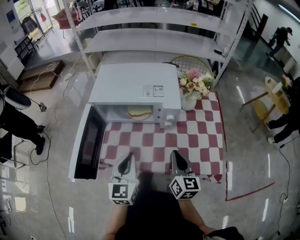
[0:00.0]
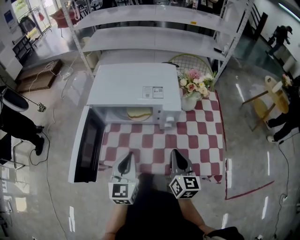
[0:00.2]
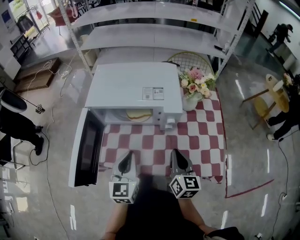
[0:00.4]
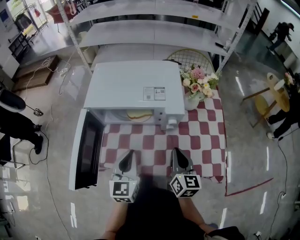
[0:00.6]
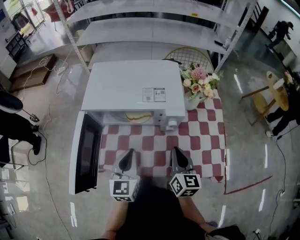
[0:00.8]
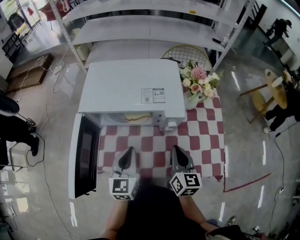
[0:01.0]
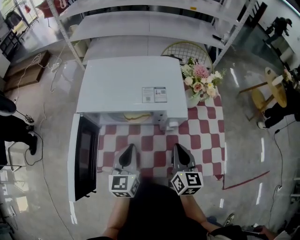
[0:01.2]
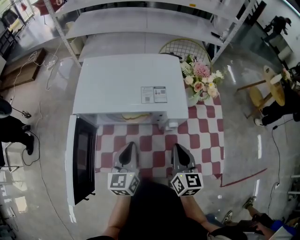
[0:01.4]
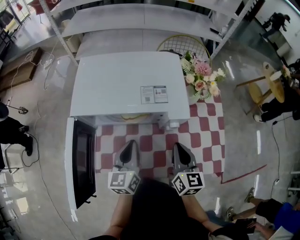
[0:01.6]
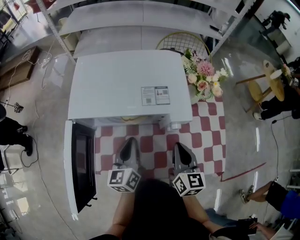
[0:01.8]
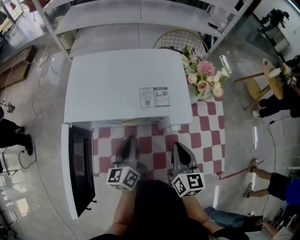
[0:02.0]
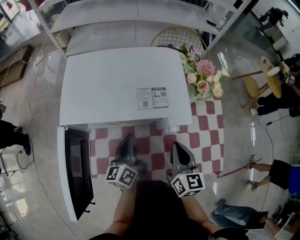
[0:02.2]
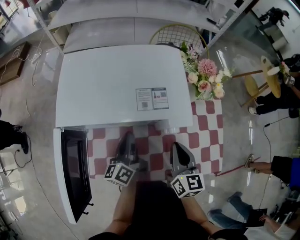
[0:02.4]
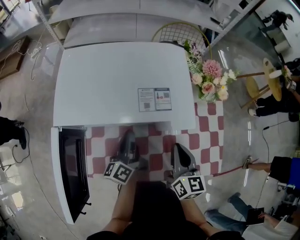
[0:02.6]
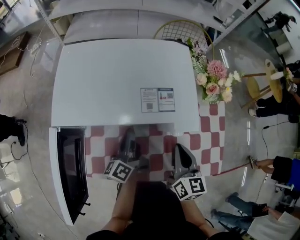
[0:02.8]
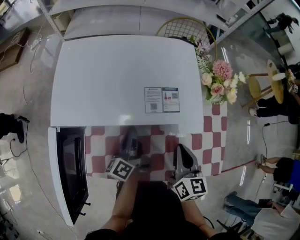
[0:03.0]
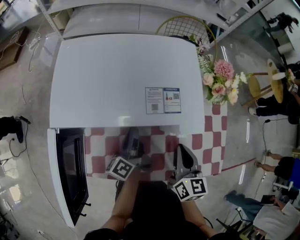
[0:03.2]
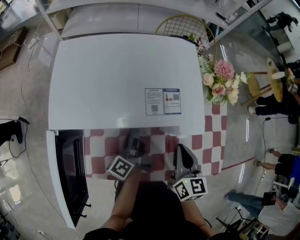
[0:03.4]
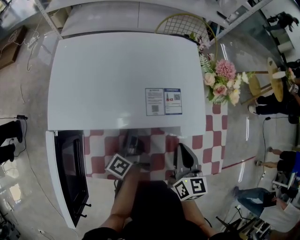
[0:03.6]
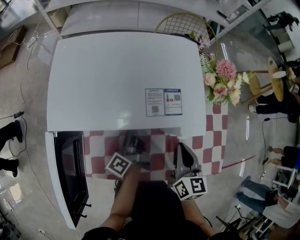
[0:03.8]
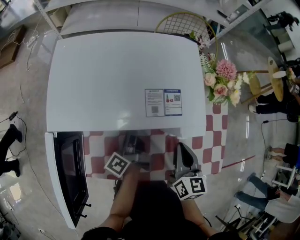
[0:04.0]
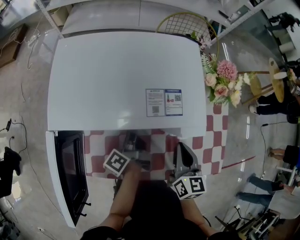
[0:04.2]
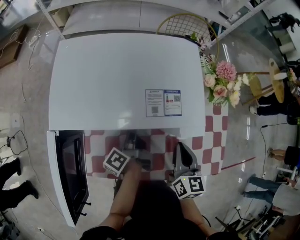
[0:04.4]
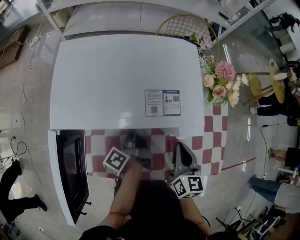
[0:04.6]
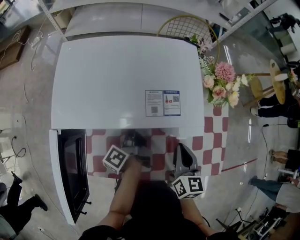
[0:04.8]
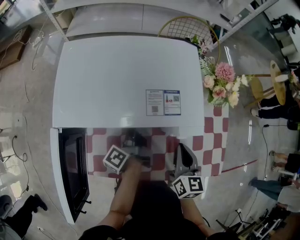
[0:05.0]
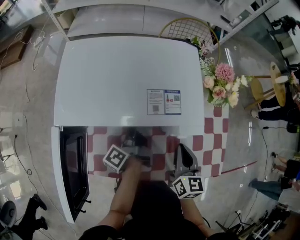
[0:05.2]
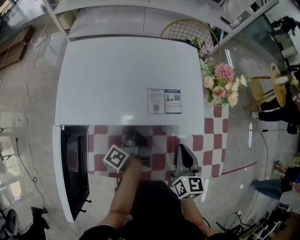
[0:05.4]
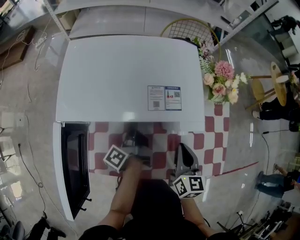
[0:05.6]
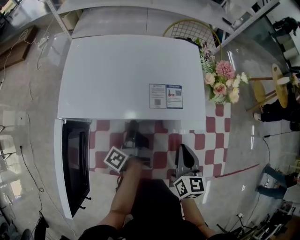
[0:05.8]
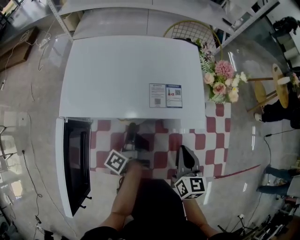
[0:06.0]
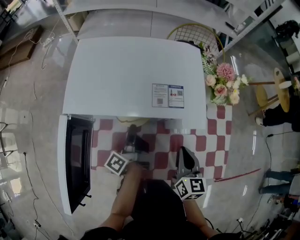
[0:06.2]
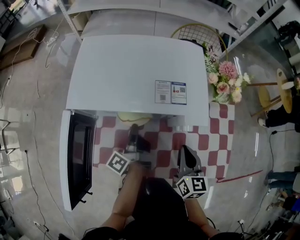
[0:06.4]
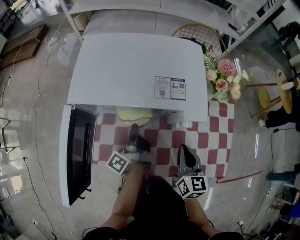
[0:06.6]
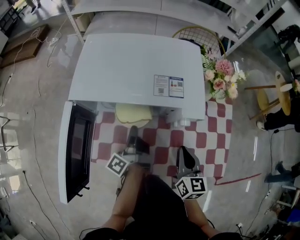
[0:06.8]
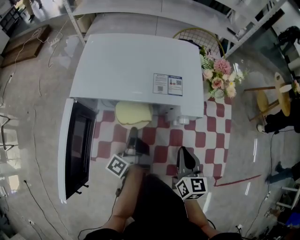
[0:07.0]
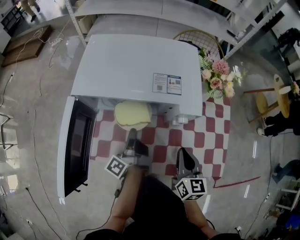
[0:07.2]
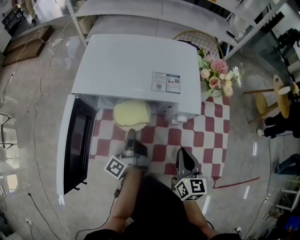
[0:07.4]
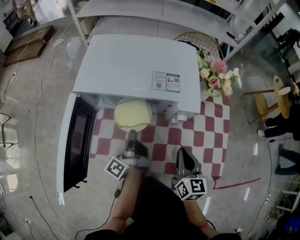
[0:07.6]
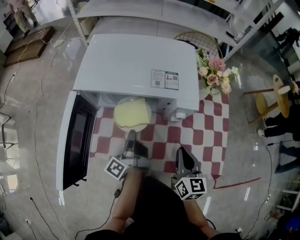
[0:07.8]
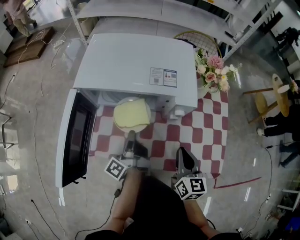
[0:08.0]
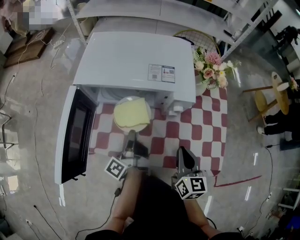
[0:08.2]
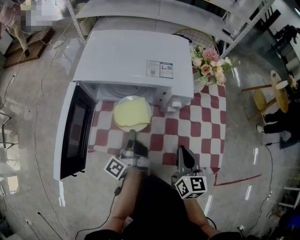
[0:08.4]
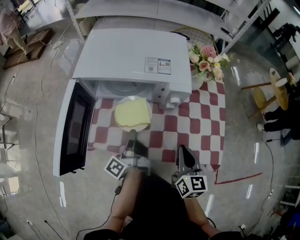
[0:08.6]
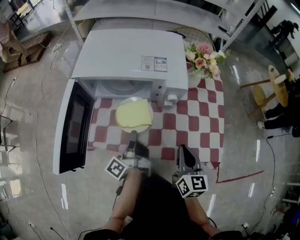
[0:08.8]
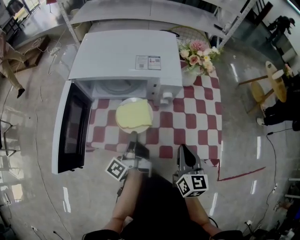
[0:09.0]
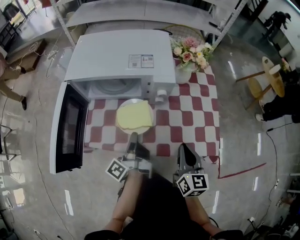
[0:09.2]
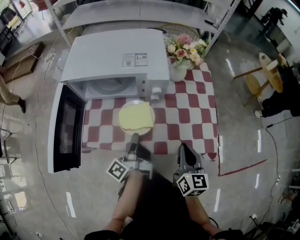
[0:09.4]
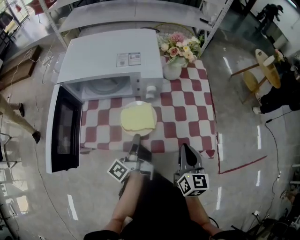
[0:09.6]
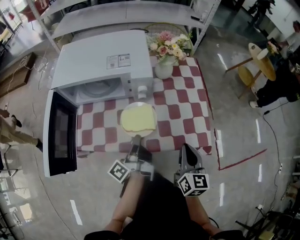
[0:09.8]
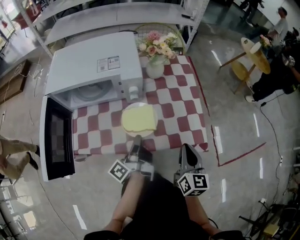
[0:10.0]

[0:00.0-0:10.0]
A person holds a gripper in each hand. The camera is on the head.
0:00.0 to 0:01.4: The right gripper moves forward, roughly 10 cm, while the left gripper is displaced forward and downward by roughly 15 cm.
0:01.4 to 0:02.8: The left gripper shifts about 10 cm forward and downward, and rolls counterclockwise, seen from behind, by about 50 degrees.
0:02.8 to 0:04.2: The left gripper swivels about 30 degrees, and opens.
0:04.2 to 0:05.8: The left gripper closes.
0:05.8 to 0:07.2: The left gripper travels backward by approximately 10 cm. The right gripper heads backward, covering some 5 cm.
0:07.2 to 0:08.6: The grippers both shift backward by approximately 5 cm.
0:08.6 to 0:10.0: Both grippers travel together to the right and backward, some 15 cm.

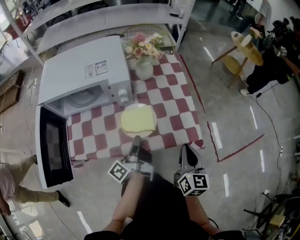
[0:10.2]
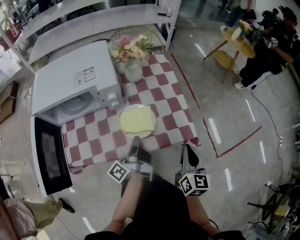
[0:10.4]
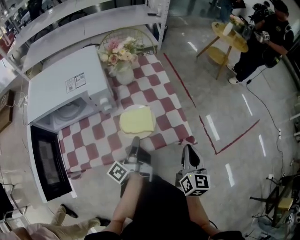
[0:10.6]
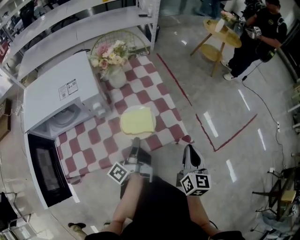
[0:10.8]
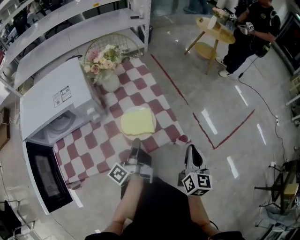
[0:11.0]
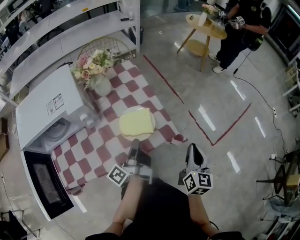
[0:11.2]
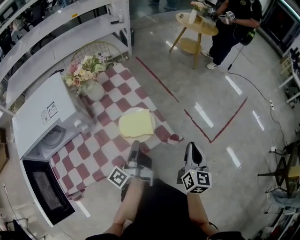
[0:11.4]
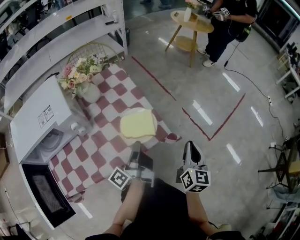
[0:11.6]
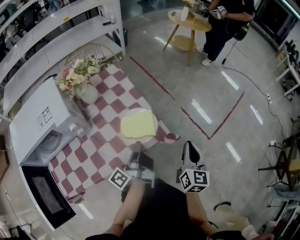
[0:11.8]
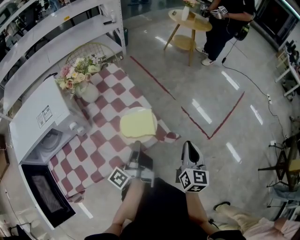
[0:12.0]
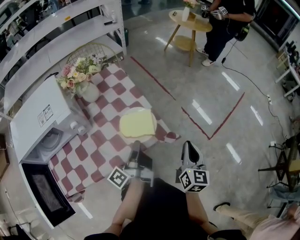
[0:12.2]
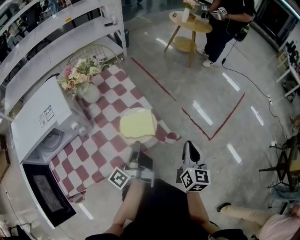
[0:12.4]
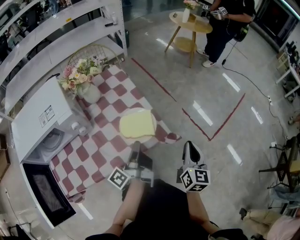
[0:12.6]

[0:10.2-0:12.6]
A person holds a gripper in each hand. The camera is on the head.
0:10.2 to 0:11.4: The two grippers go about 15 cm to the right. The left gripper turns by some 20 degrees; the right gripper changes its angle by approximately 30 degrees.
0:11.4 to 0:12.6: The grippers make only small movements.

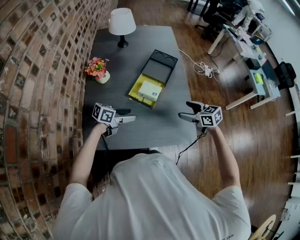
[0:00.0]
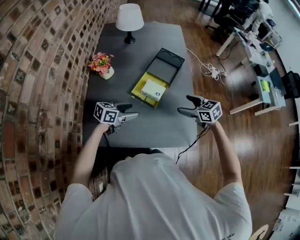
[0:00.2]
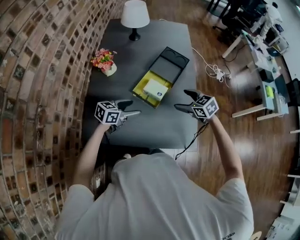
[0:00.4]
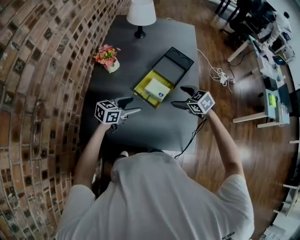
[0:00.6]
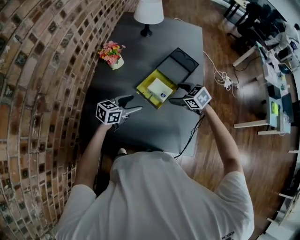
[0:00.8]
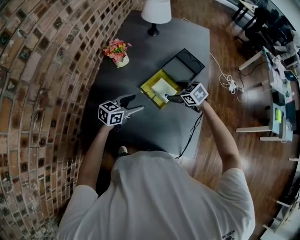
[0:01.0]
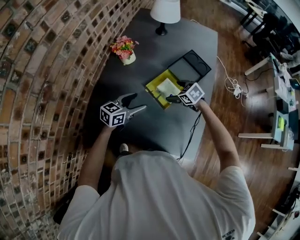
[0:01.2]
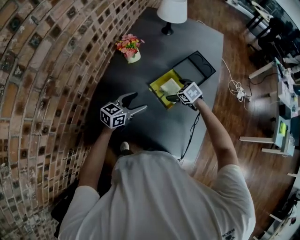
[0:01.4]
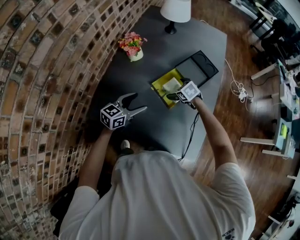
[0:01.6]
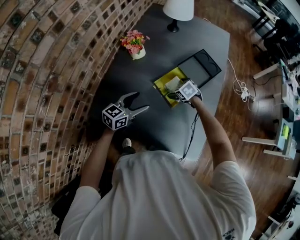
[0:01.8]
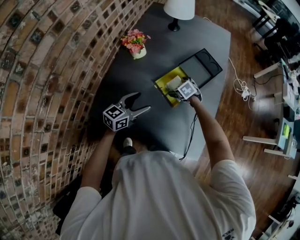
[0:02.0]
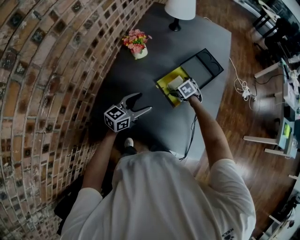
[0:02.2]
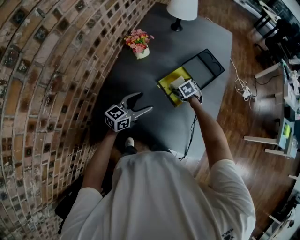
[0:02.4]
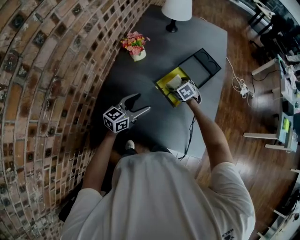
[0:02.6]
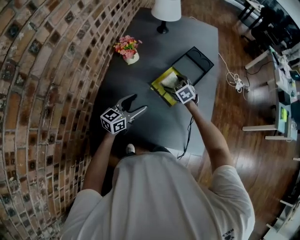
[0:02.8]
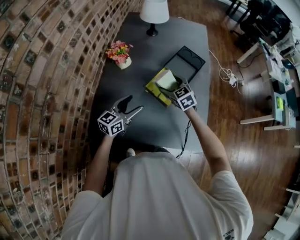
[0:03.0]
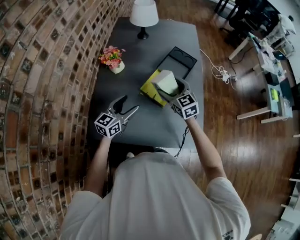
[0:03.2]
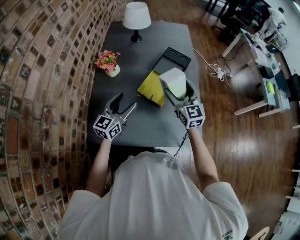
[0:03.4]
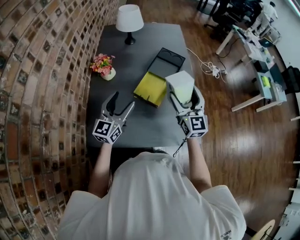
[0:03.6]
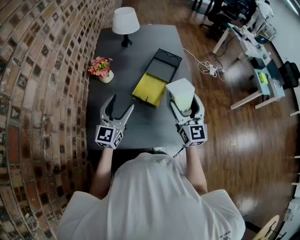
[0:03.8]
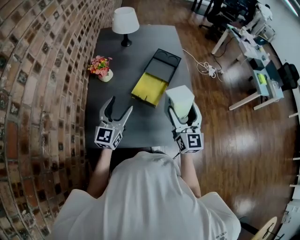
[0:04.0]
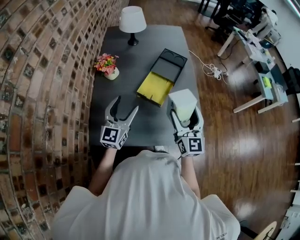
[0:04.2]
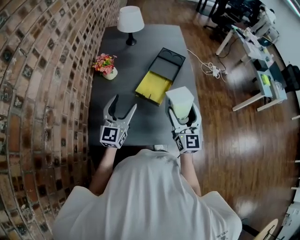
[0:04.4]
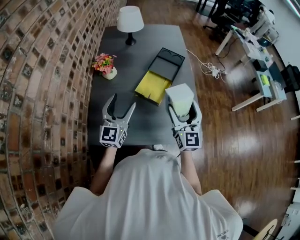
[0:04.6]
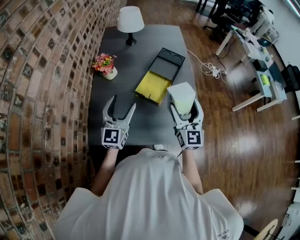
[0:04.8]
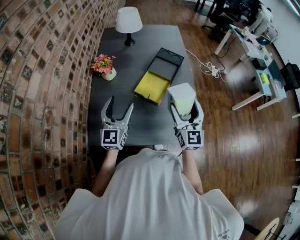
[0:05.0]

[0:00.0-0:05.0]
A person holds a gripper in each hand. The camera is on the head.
0:00.0 to 0:01.6: The left gripper changes its angle by about 40 degrees. The right gripper moves roughly 30 cm, and swivels about 40 degrees.
0:01.6 to 0:03.4: The right gripper is displaced upward by roughly 25 cm, and tips its fingers upward by some 50 degrees. The left gripper is displaced upward by approximately 10 cm.
0:03.4 to 0:05.0: The right gripper moves backward and to the right, about 15 cm, and changes its angle by about 20 degrees, while the left gripper shifts approximately 5 cm upward, and swivels some 20 degrees.

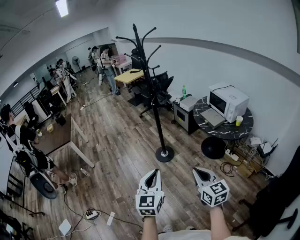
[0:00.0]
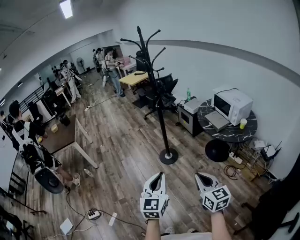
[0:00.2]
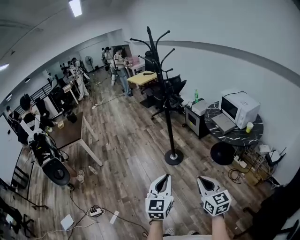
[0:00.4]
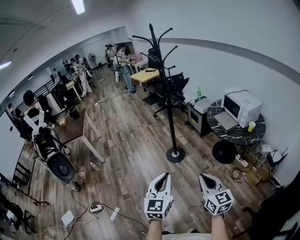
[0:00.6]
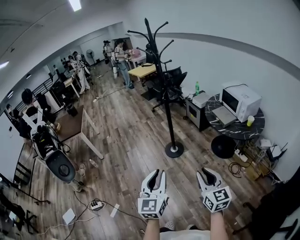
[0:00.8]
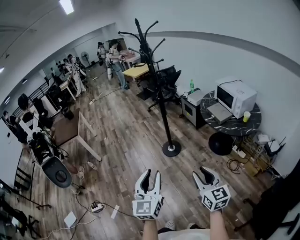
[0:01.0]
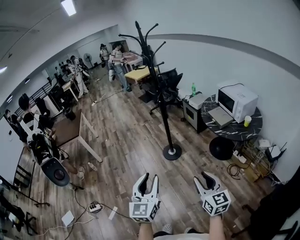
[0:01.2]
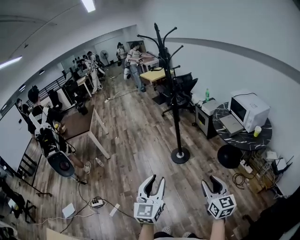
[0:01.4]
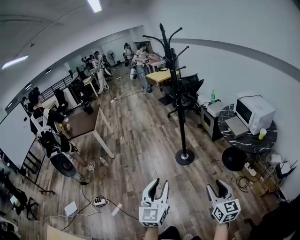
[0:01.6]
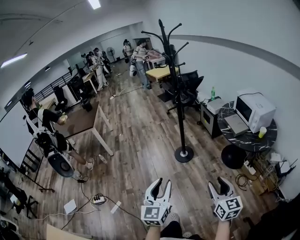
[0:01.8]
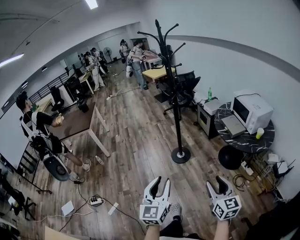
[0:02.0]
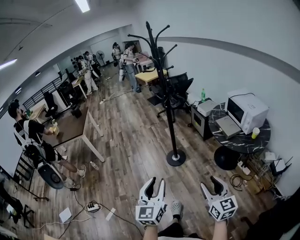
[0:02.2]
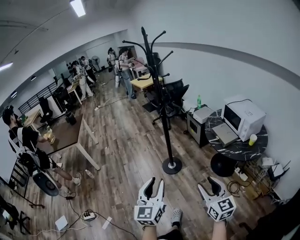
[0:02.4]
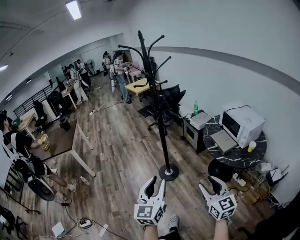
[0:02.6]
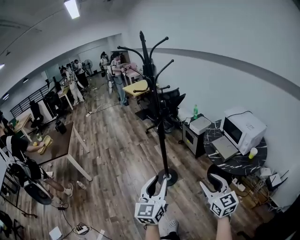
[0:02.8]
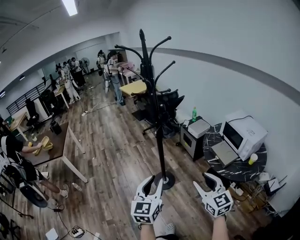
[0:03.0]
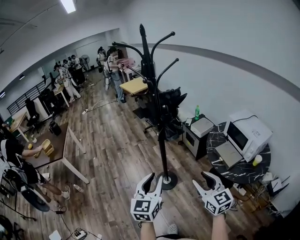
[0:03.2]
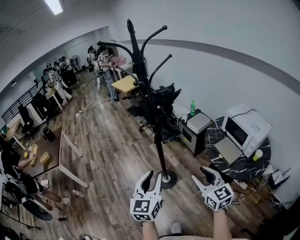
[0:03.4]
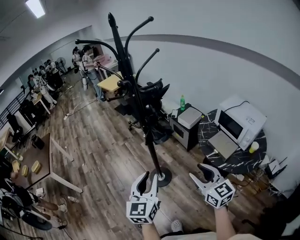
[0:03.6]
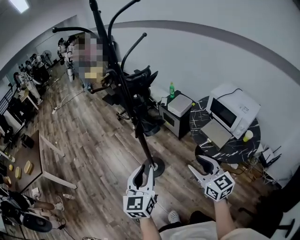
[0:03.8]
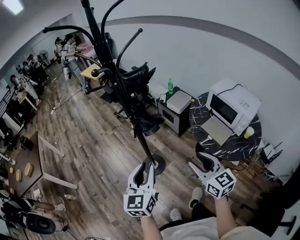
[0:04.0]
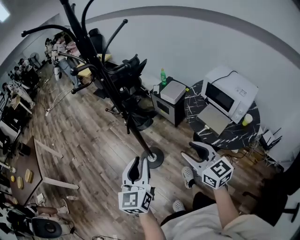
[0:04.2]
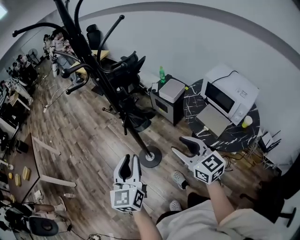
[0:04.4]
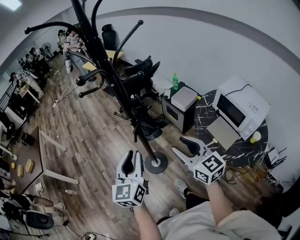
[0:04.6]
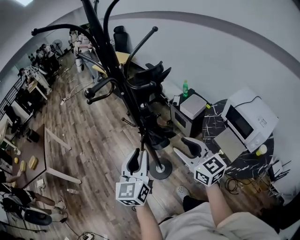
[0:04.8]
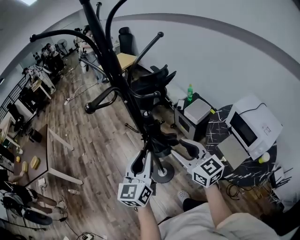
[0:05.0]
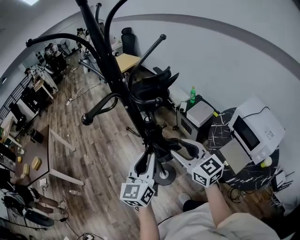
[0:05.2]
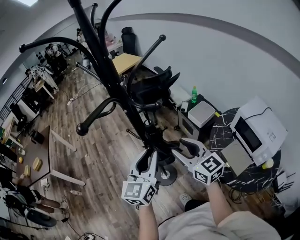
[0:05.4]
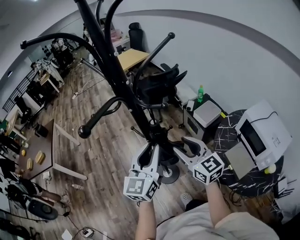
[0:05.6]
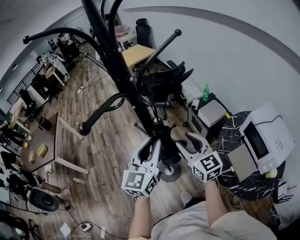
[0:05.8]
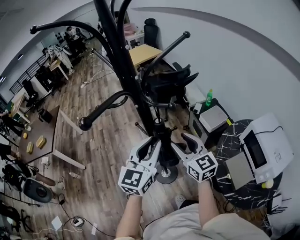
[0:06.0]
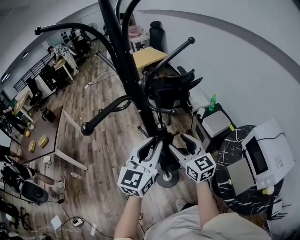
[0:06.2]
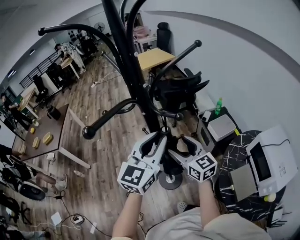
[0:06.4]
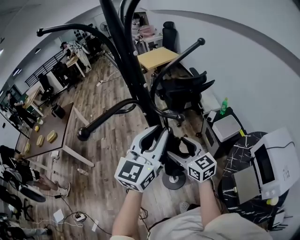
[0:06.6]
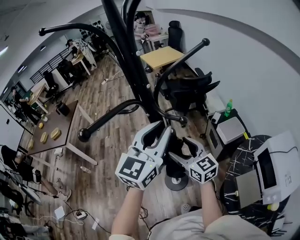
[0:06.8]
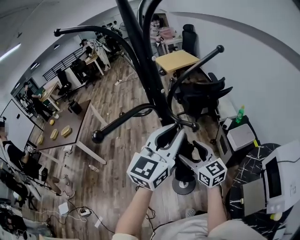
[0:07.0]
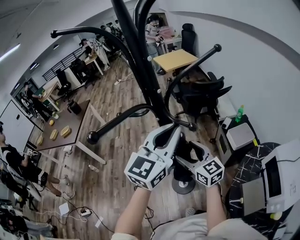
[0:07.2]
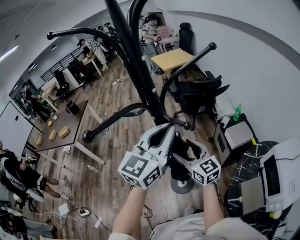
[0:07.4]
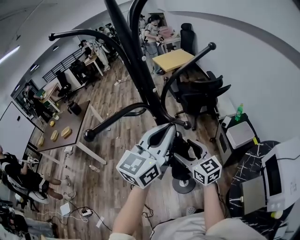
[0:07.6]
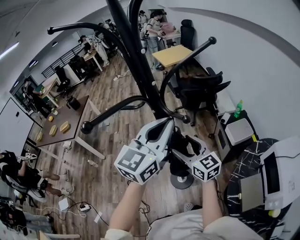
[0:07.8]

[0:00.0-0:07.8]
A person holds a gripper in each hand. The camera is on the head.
0:00.0 to 0:01.6: The left gripper shifts about 5 cm backward, and opens up, while the right gripper heads to the right and downward, covering some 10 cm, and opens up.
0:01.6 to 0:03.2: The two grippers travel together, forward, some 40 cm.
0:03.2 to 0:04.6: Both grippers move forward, roughly 25 cm.
0:04.6 to 0:06.2: The left gripper goes roughly 20 cm forward, to the right and upward. The right gripper heads forward, covering approximately 20 cm.
0:06.2 to 0:07.8: The left gripper is displaced upward by some 10 cm. The right gripper shifts by roughly 5 cm.
